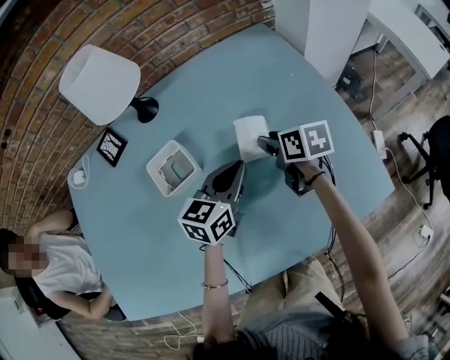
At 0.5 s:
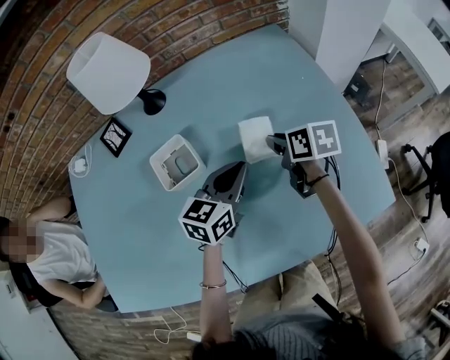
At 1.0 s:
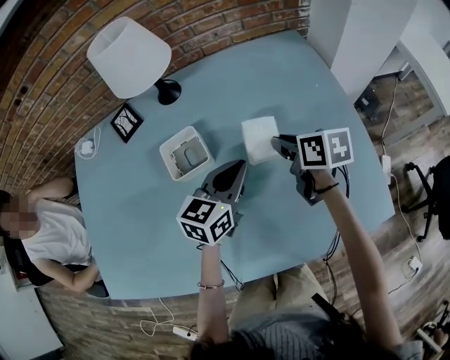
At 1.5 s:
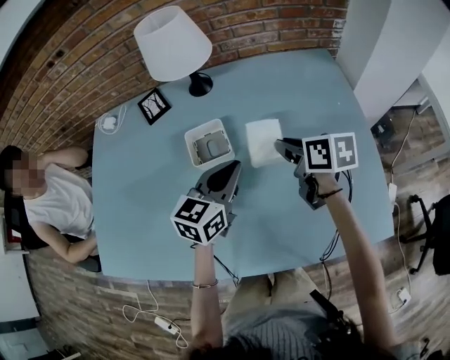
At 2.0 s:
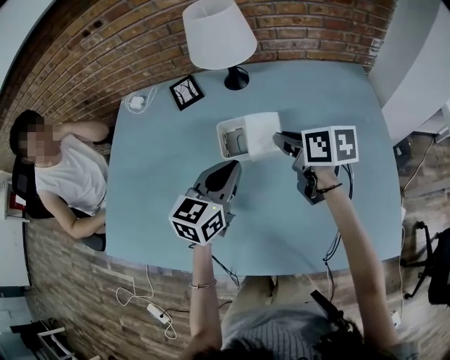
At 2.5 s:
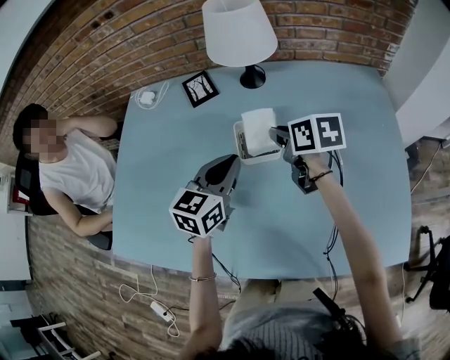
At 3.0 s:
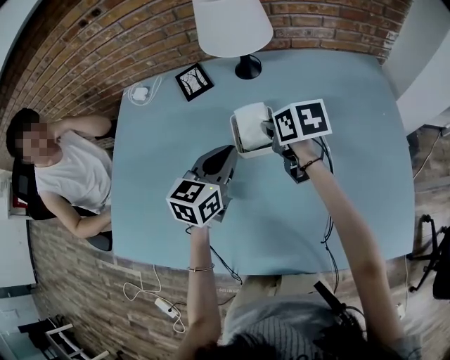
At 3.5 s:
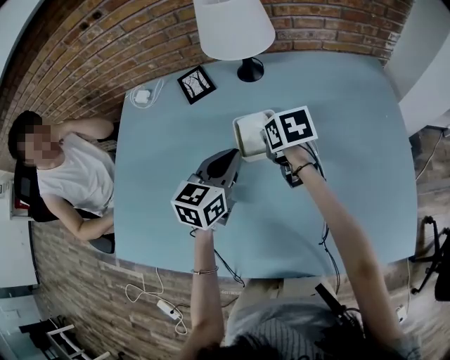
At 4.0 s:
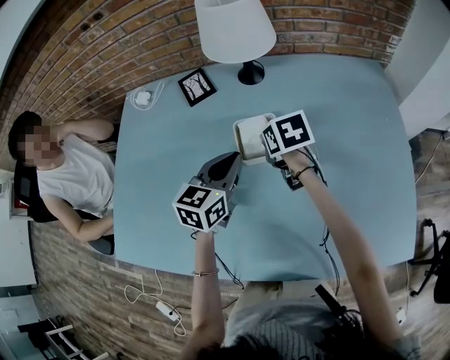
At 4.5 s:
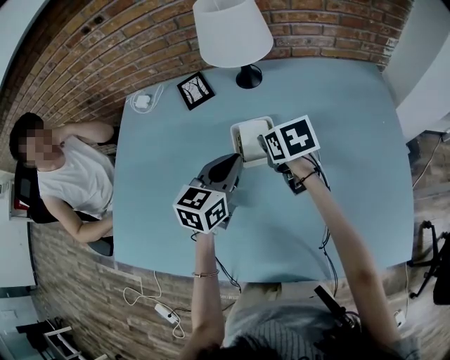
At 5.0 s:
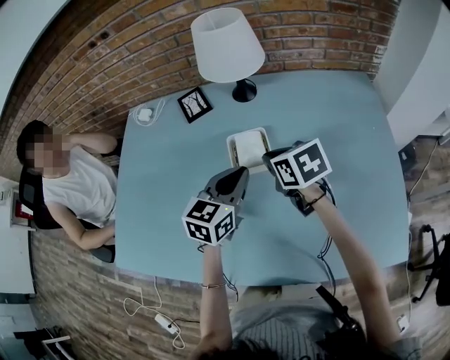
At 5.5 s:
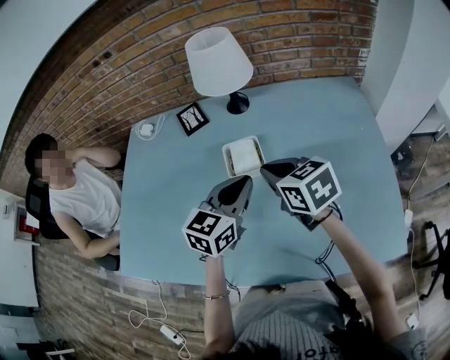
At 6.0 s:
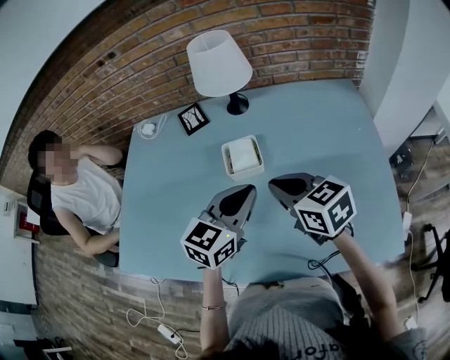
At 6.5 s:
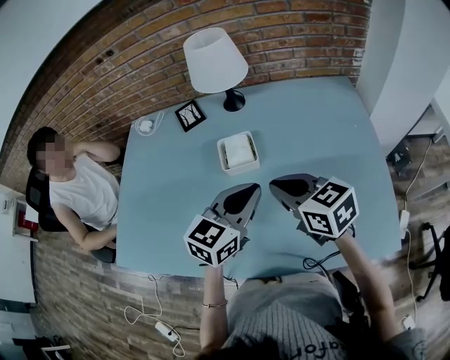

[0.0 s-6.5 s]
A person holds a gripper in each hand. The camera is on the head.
0.0 to 2.0 s: The two grippers go approximately 20 cm to the left and upward. The left gripper changes its angle by approximately 30 degrees; the right gripper changes its angle by roughly 20 degrees.
2.0 to 4.5 s: The right gripper moves to the left, downward and forward, approximately 10 cm, and rotates about 20 degrees. Meanwhile the left gripper is displaced forward by roughly 5 cm.
4.5 to 6.5 s: The right gripper goes some 20 cm backward and upward, changes its angle by roughly 30 degrees, and closes; the left gripper moves backward, to the right and upward, approximately 15 cm.

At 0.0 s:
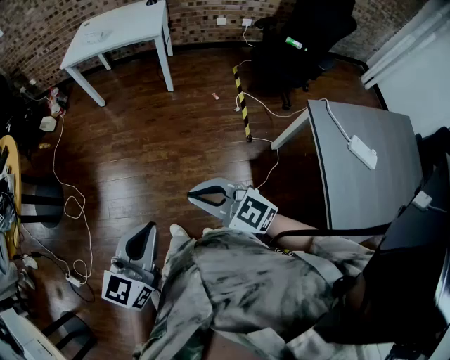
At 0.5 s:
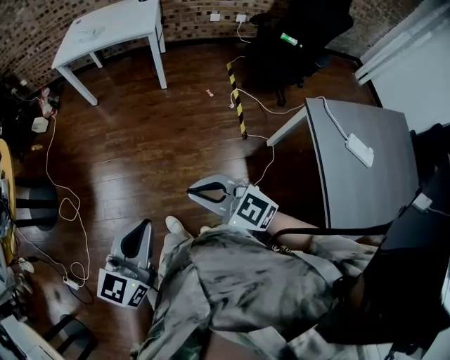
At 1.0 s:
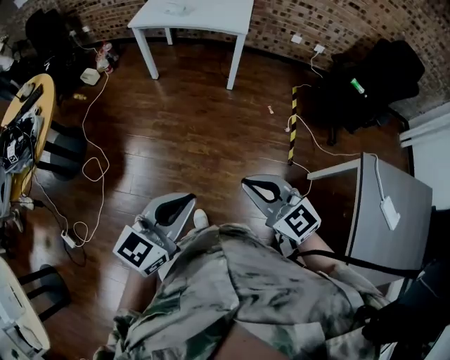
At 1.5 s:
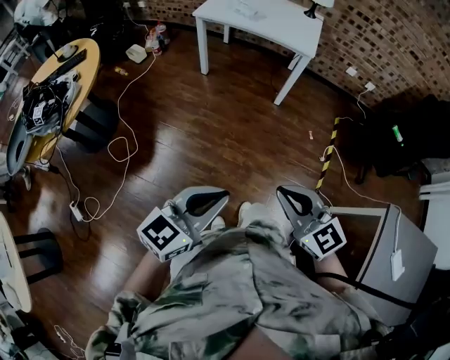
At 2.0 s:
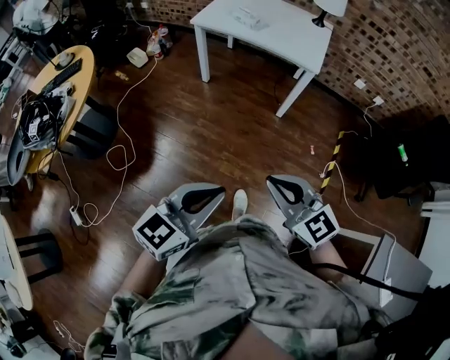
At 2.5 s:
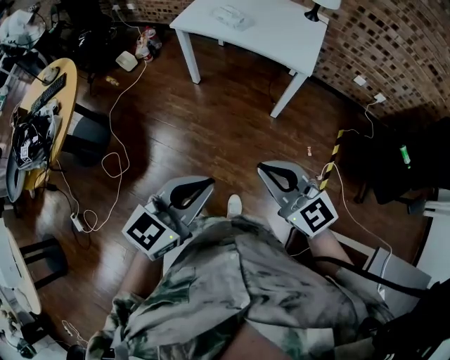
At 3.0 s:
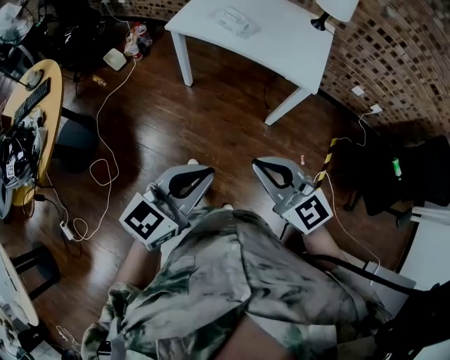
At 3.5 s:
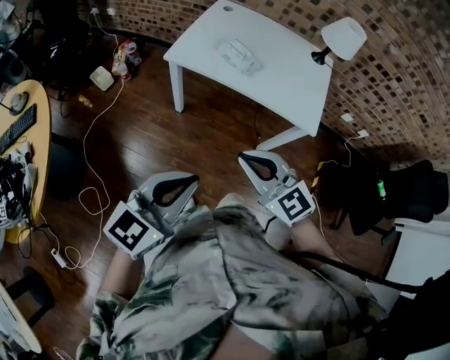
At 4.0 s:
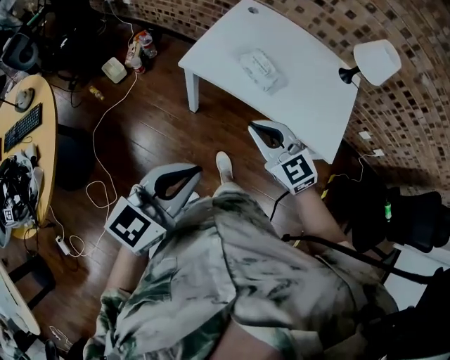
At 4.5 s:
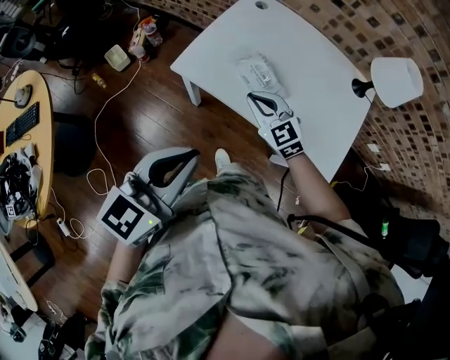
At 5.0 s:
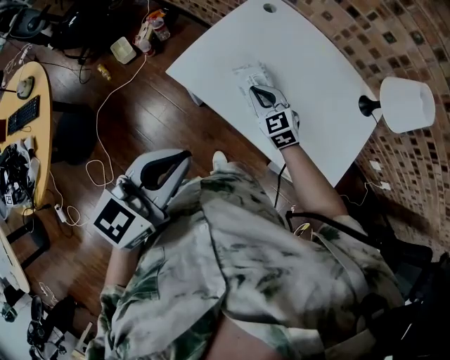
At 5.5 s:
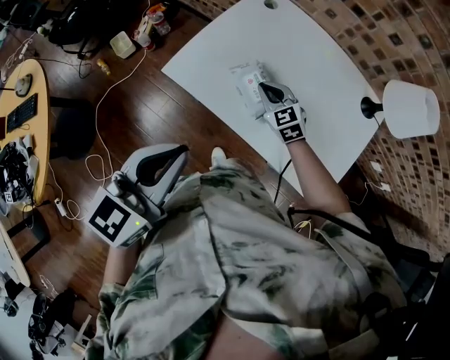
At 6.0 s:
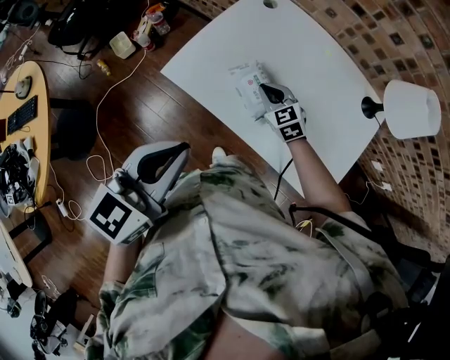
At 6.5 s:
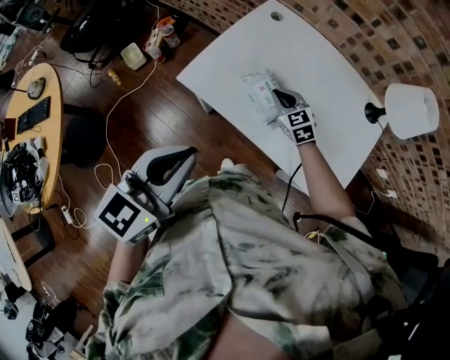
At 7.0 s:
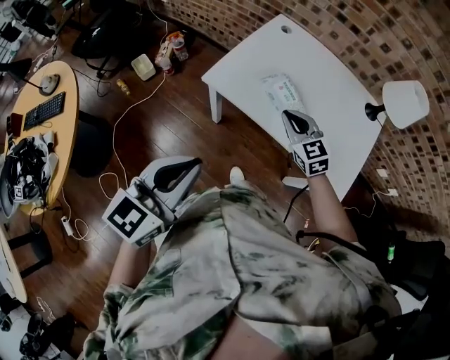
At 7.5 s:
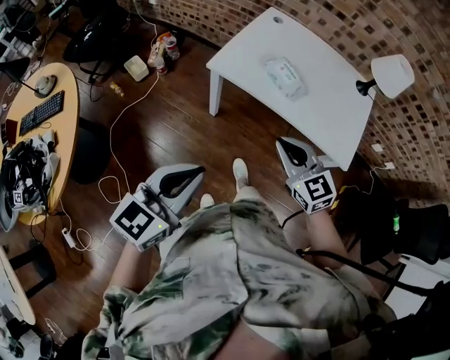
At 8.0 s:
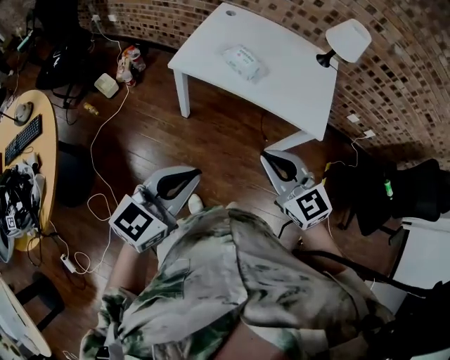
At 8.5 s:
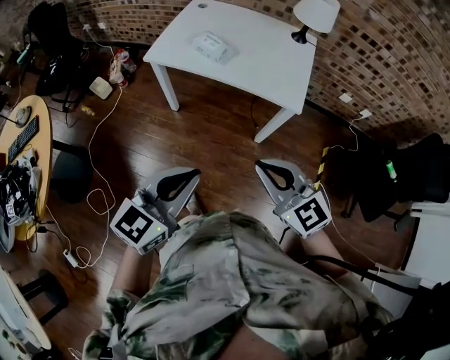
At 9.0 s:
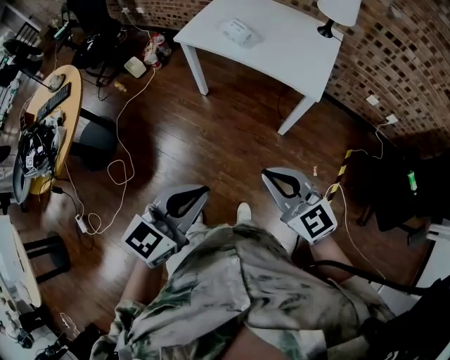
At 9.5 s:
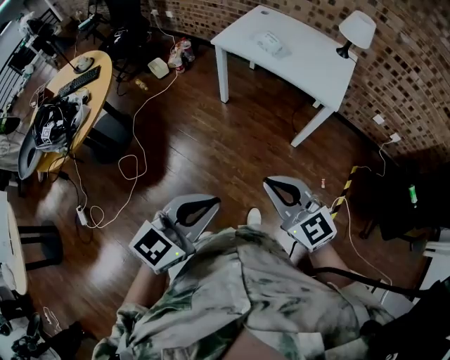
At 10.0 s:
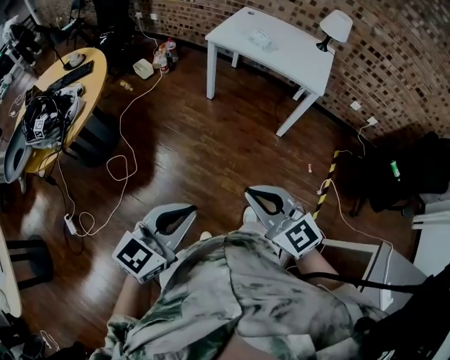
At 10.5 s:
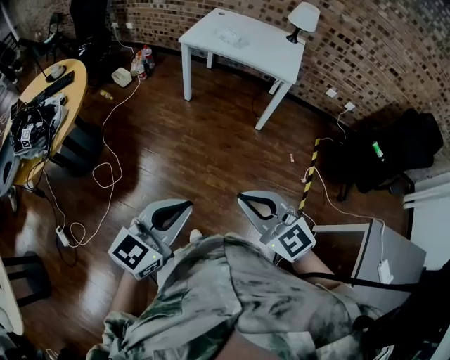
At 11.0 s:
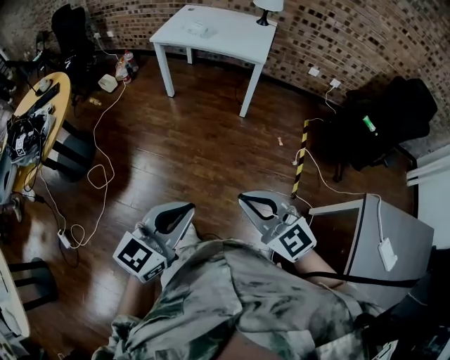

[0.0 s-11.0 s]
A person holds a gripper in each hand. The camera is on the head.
0.0 to 2.0 s: The two grippers go approximately 35 cm forward.
2.0 to 3.5 s: The two grippers go about 40 cm forward.
3.5 to 5.5 s: The right gripper shifts some 50 cm forward and downward. Meanwhile the left gripper heads forward, covering some 35 cm, and changes its angle by roughly 20 degrees.
5.5 to 7.5 s: The right gripper shifts some 35 cm backward and upward. The left gripper goes approximately 25 cm backward and to the left.
7.5 to 9.0 s: The two grippers go approximately 35 cm backward and to the right.
9.0 to 11.0 s: The grippers both shift backward by approximately 40 cm.

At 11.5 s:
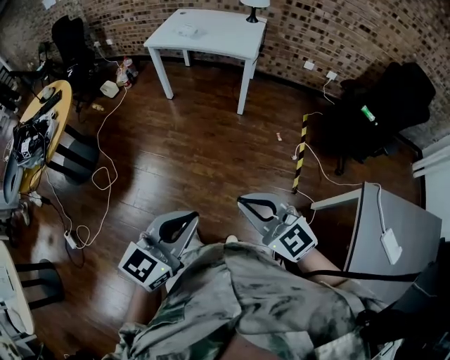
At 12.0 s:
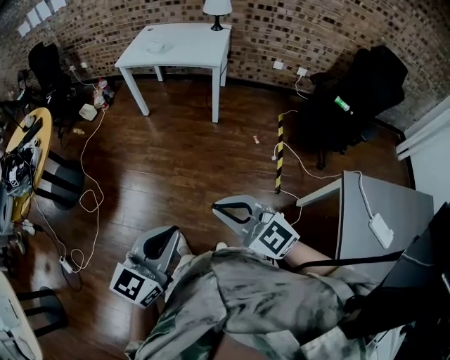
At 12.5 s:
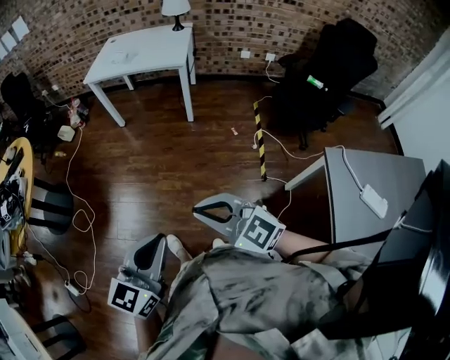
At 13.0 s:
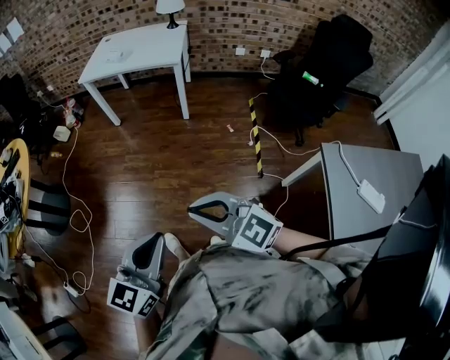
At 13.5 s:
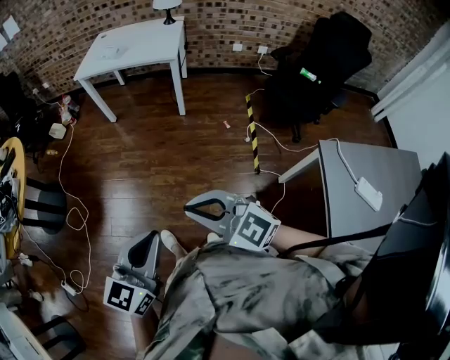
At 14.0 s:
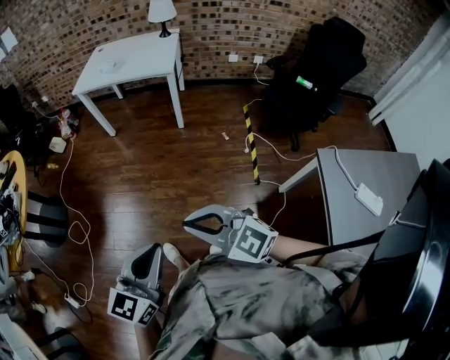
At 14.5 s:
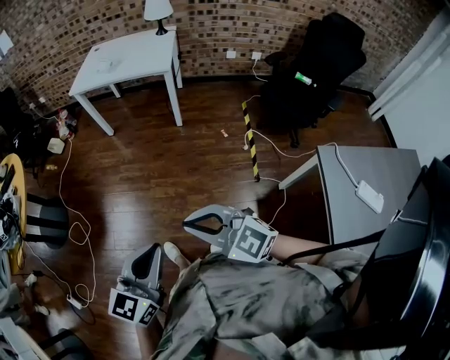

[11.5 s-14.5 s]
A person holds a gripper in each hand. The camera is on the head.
11.5 to 14.5 s: There are only small adjustments of the grippers.

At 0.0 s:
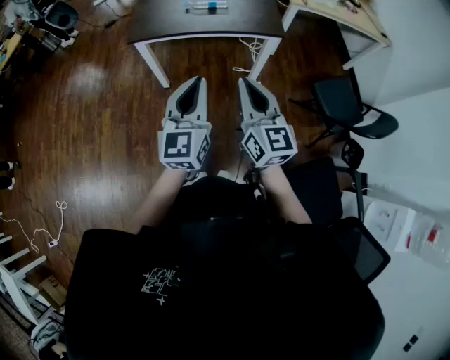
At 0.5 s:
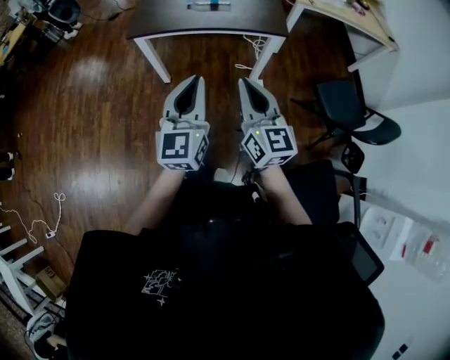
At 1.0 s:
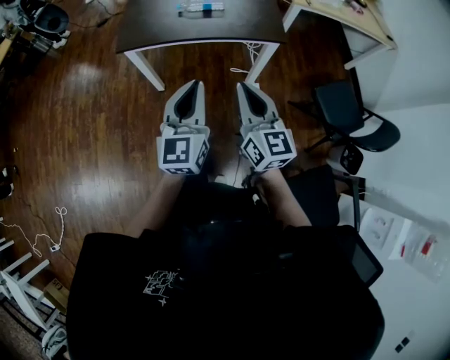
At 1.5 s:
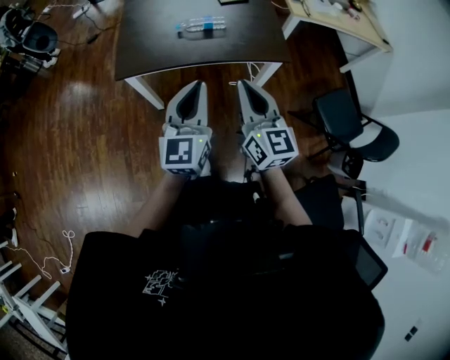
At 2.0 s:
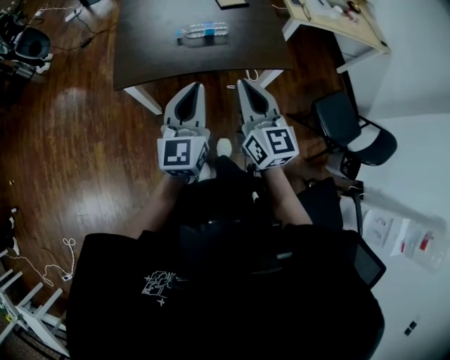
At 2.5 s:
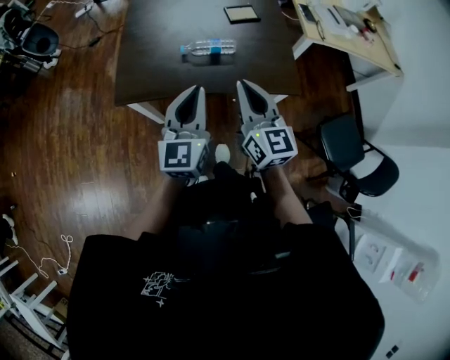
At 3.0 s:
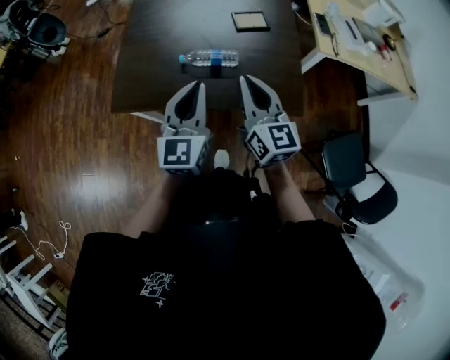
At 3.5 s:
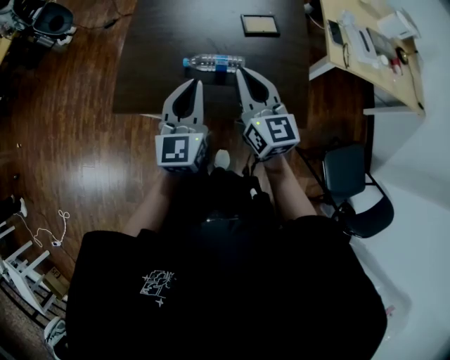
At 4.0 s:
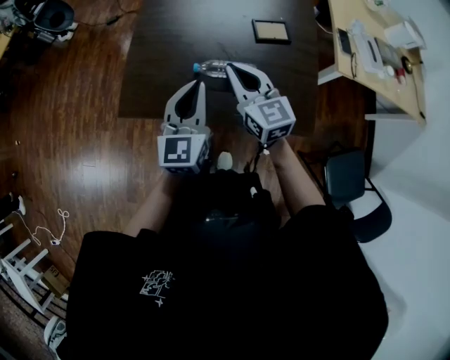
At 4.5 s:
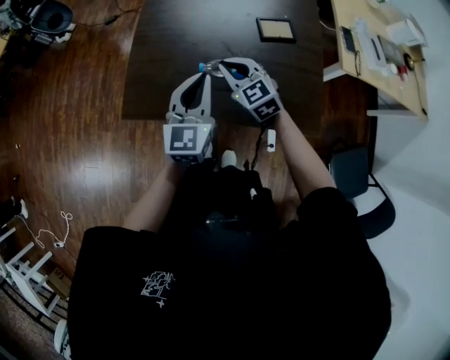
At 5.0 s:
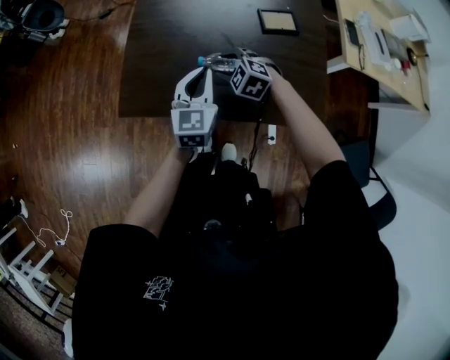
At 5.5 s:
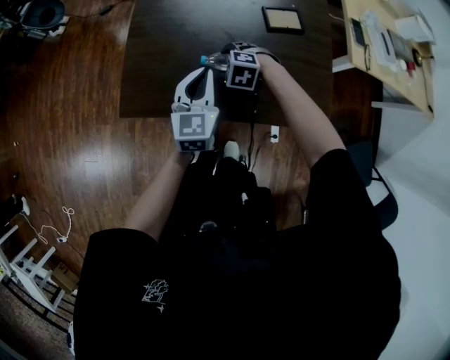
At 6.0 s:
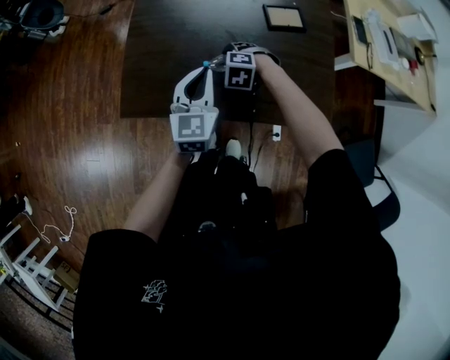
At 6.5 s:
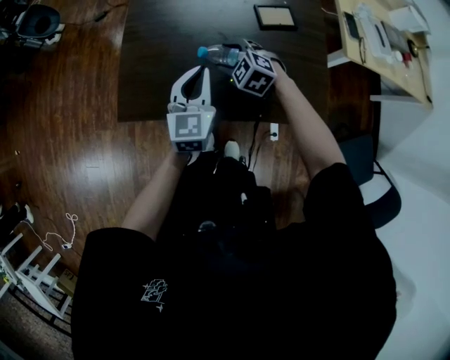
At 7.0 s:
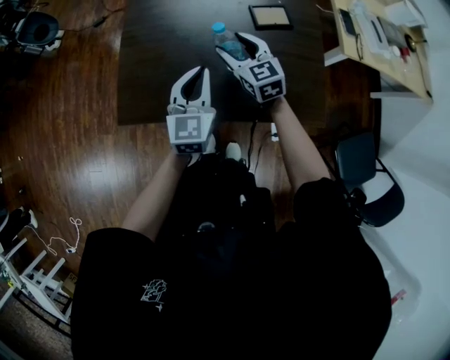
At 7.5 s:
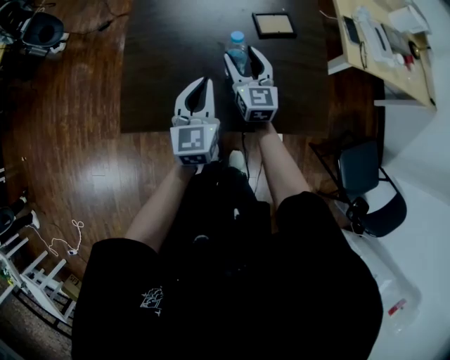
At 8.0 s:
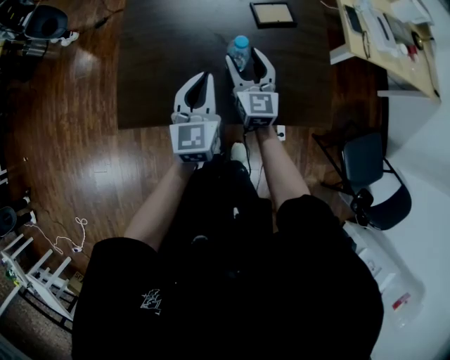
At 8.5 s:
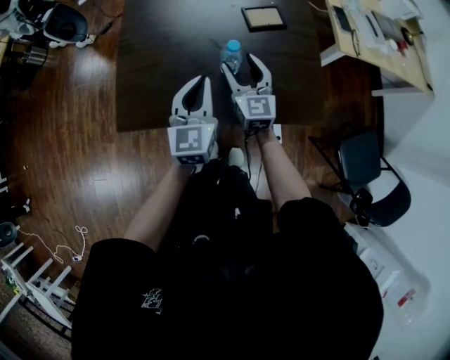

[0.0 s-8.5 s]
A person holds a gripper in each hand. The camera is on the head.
0.0 to 2.0 s: The two grippers go some 25 cm forward.
2.0 to 4.0 s: Both grippers travel together forward, approximately 30 cm. The right gripper changes its angle by roughly 30 degrees.
4.0 to 6.5 s: The right gripper heads downward and forward, covering approximately 20 cm, tips its fingers downward by some 40 degrees, and opens. The left gripper shifts about 10 cm downward and forward.
6.5 to 8.5 s: The right gripper travels to the right and upward by approximately 10 cm, and tilts its fingers some 40 degrees upward.
